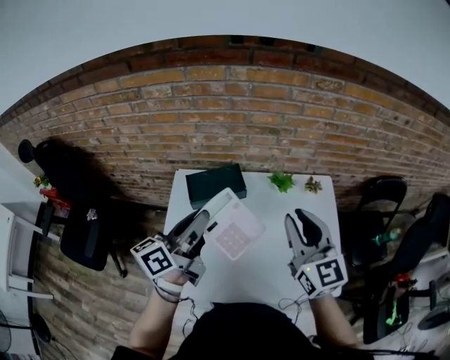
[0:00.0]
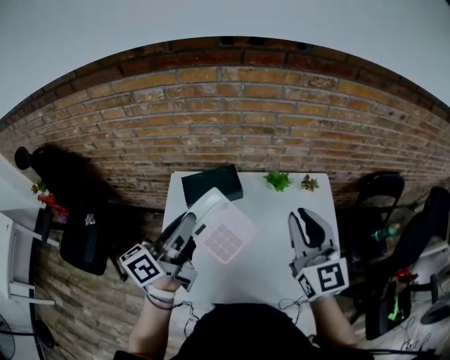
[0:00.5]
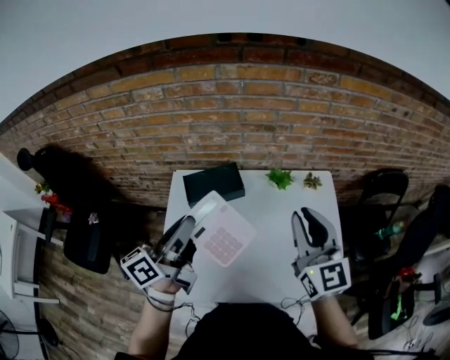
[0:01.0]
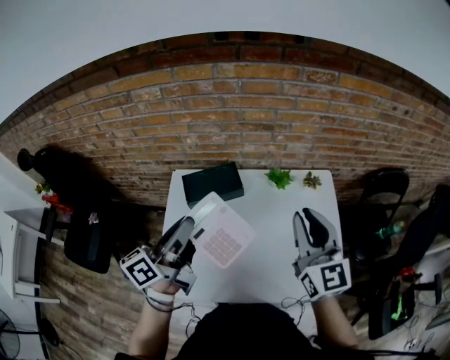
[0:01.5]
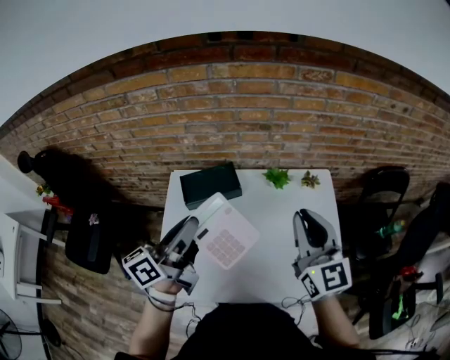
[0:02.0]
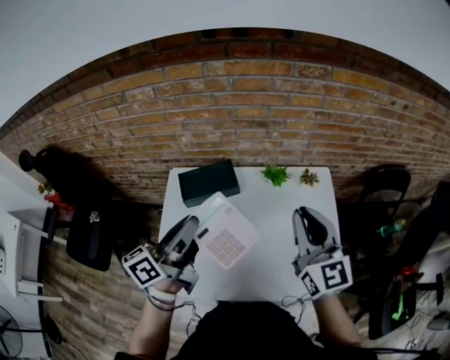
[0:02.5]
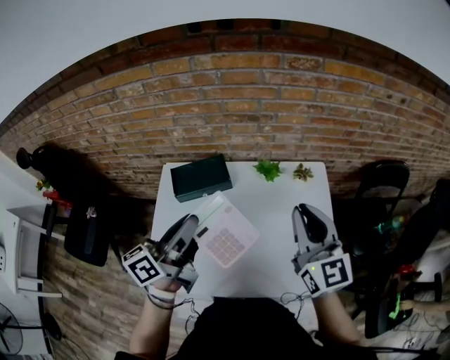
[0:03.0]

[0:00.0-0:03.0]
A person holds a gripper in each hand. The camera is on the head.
0:00.0 to 0:01.5: The grippers move only a little.
0:01.5 to 0:03.0: The grippers both shift to the right by some 5 cm.

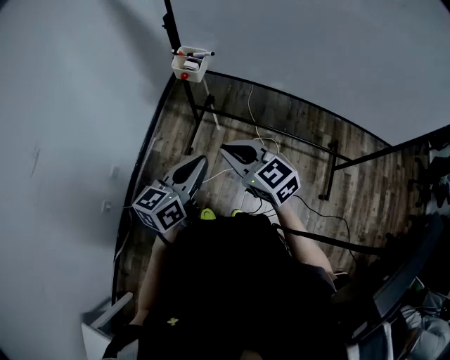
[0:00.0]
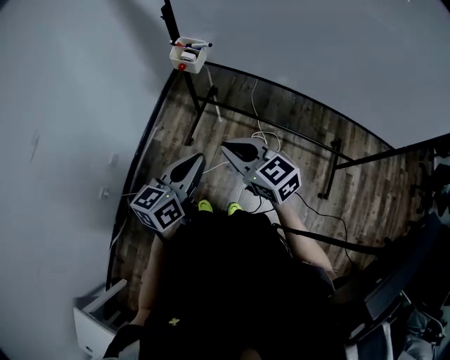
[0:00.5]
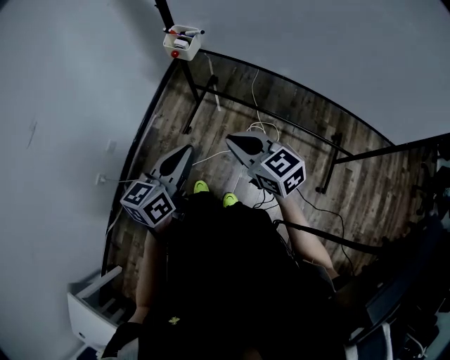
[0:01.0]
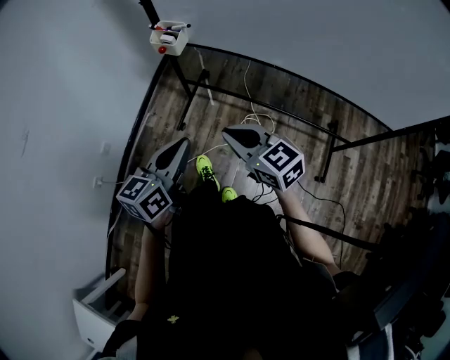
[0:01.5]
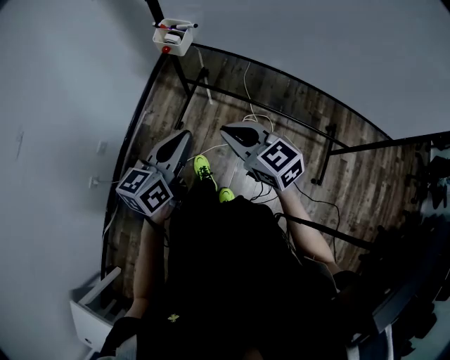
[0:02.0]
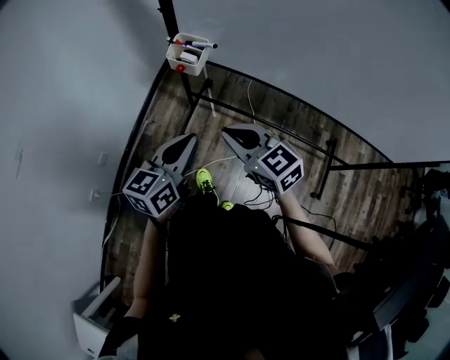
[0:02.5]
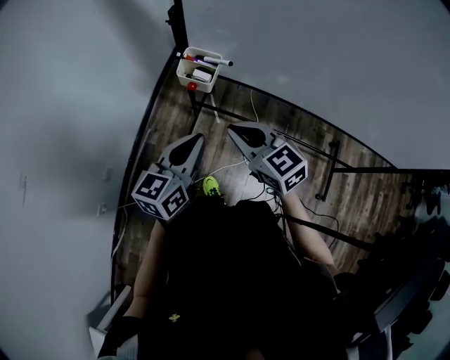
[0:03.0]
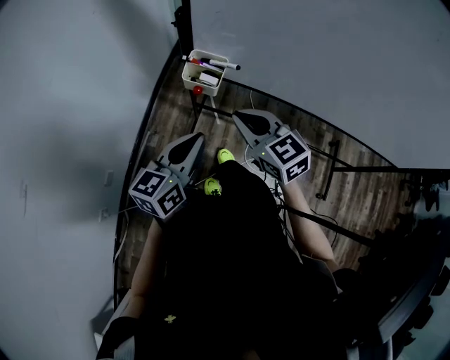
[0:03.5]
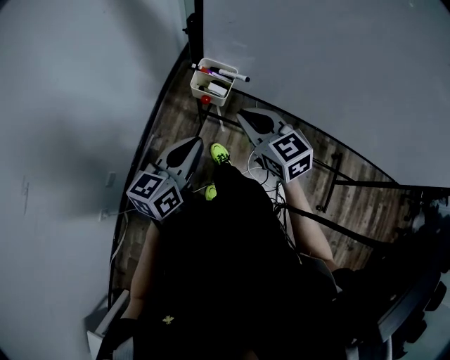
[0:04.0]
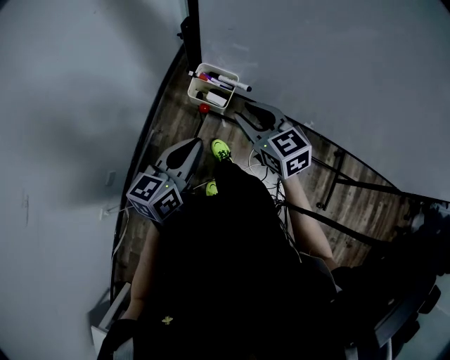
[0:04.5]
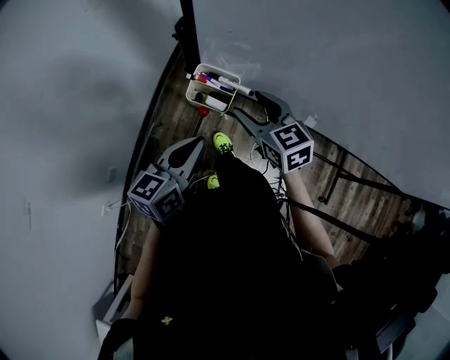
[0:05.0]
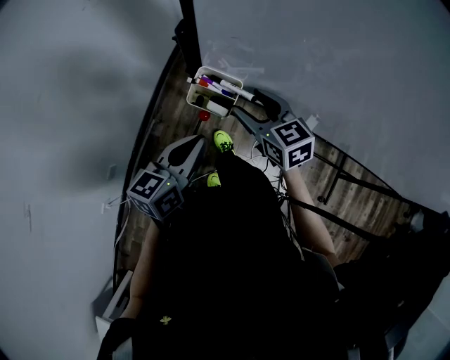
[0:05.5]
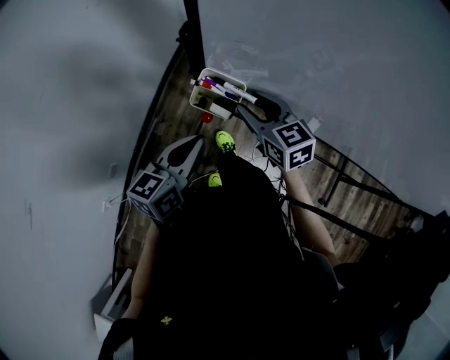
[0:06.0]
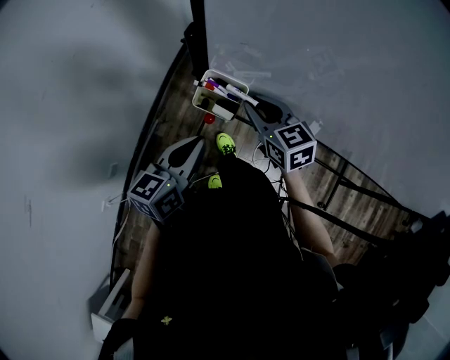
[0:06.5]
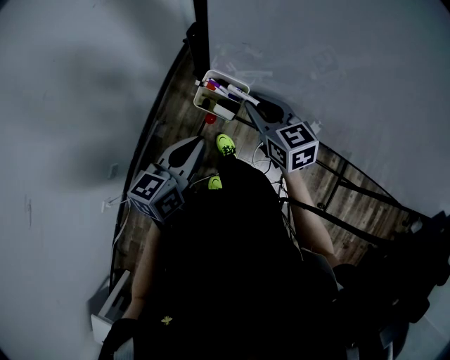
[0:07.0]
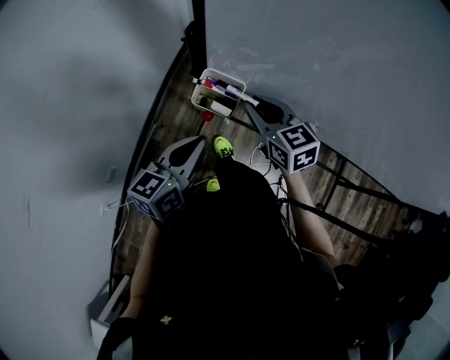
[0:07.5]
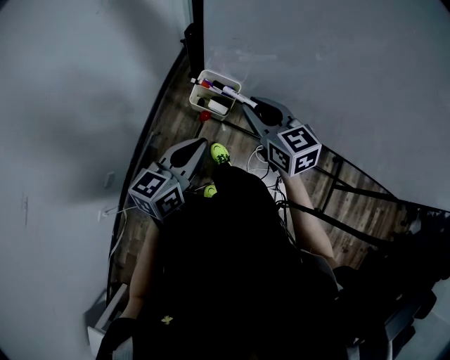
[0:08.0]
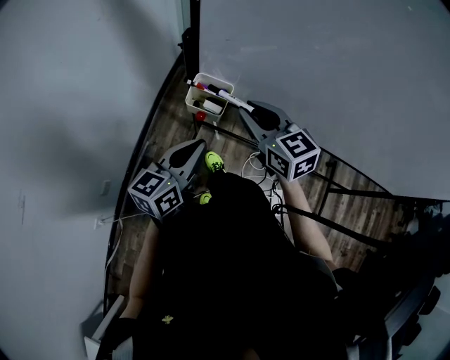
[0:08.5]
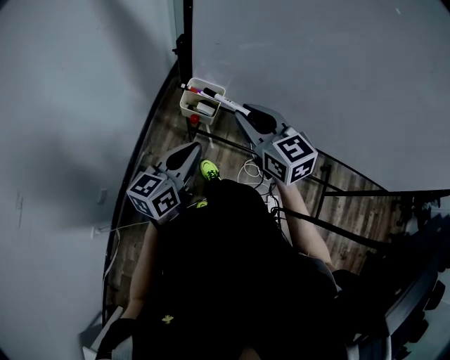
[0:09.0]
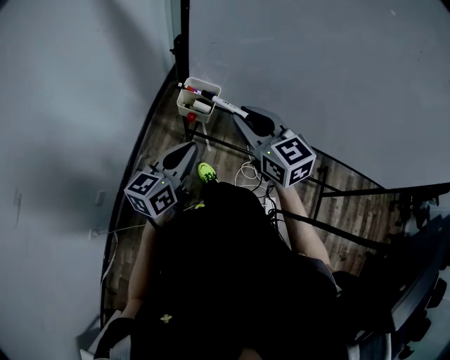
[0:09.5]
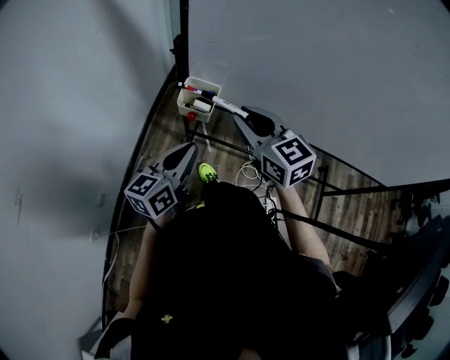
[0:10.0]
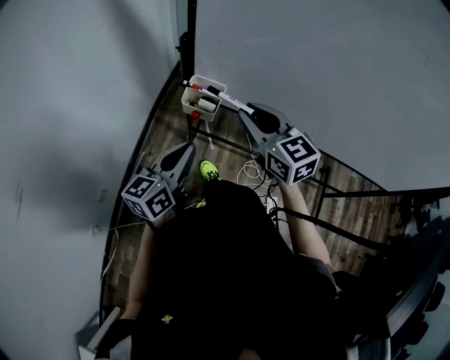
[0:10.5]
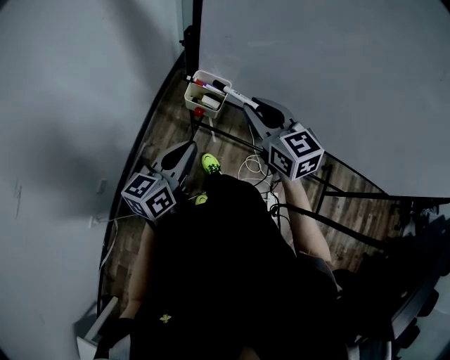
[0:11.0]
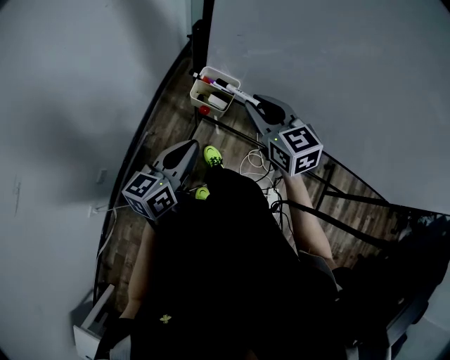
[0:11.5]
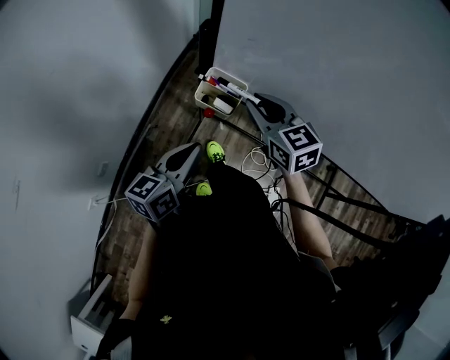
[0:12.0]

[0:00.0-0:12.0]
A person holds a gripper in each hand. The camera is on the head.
0:00.0 to 0:02.0: The right gripper is displaced to the right by roughly 5 cm.
0:02.0 to 0:04.0: The left gripper travels forward and to the left by approximately 25 cm; the right gripper moves forward, roughly 25 cm.
0:04.0 to 0:06.0: The right gripper shifts some 15 cm forward and downward, and opens its fingers, while the left gripper moves forward, roughly 10 cm.
0:06.0 to 0:08.0: The right gripper goes roughly 5 cm upward, and closes.
0:08.0 to 0:10.0: The right gripper shifts some 10 cm backward and upward.
0:10.0 to 0:12.0: The right gripper travels forward and downward by about 10 cm. Meanwhile the left gripper moves approximately 5 cm.

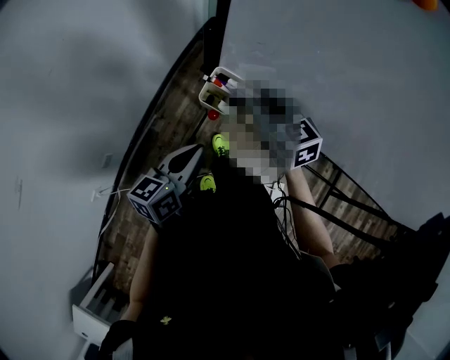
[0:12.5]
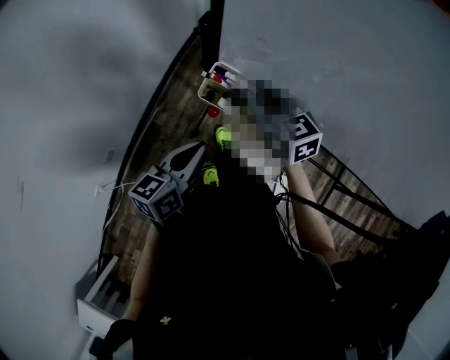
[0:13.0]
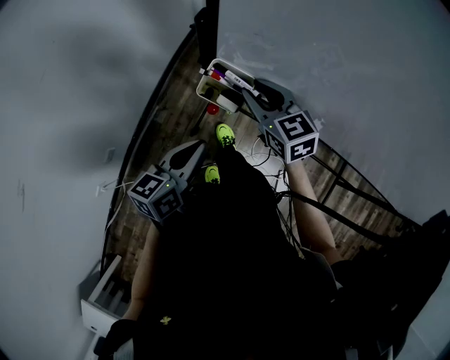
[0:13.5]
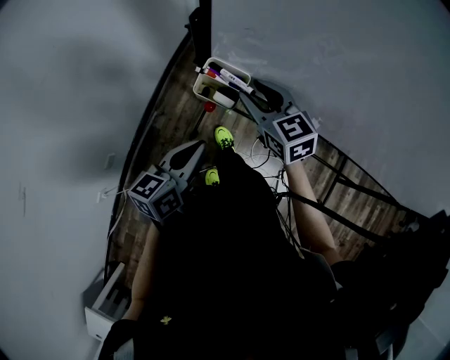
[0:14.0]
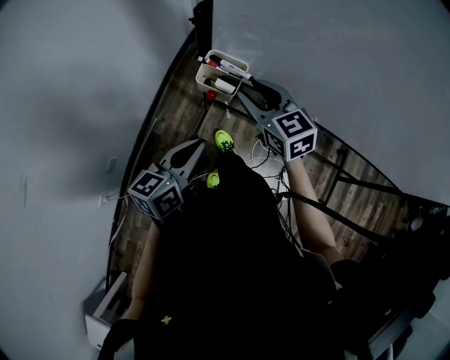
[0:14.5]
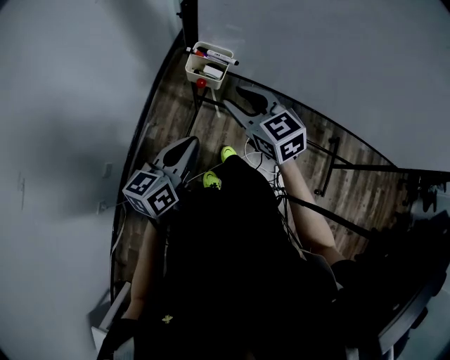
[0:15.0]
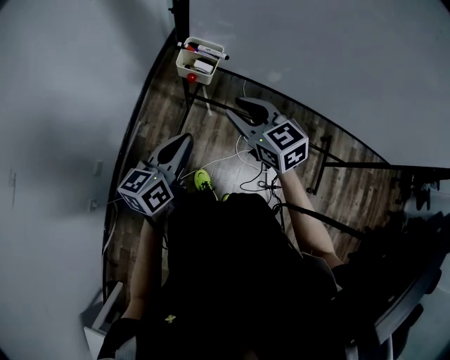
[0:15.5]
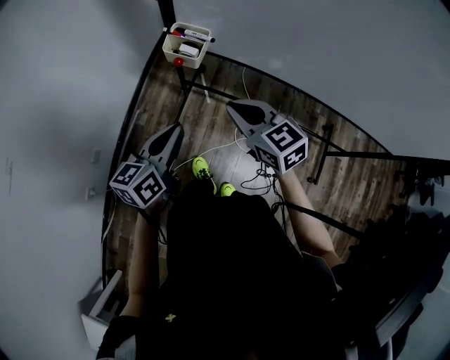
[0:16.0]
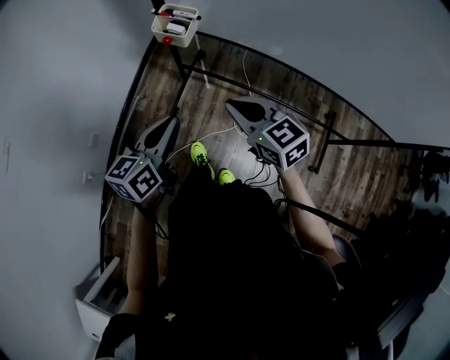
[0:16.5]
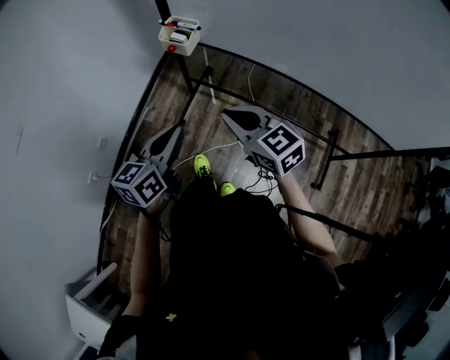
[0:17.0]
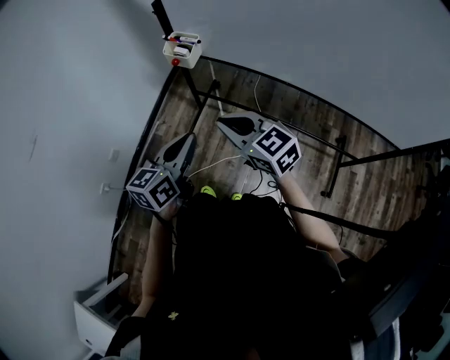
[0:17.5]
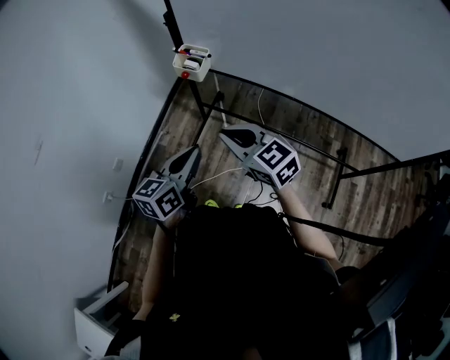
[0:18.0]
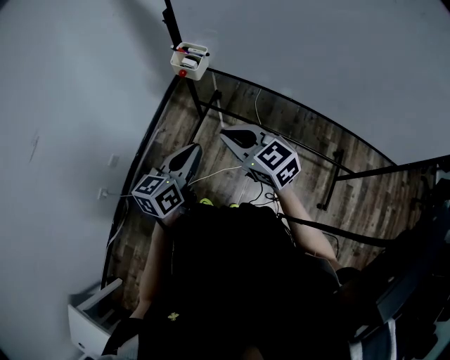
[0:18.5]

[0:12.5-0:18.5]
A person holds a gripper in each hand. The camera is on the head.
0:12.5 to 0:14.5: The right gripper moves backward, some 5 cm.
0:14.5 to 0:16.5: The left gripper heads backward, covering about 10 cm, while the right gripper shifts roughly 25 cm backward, and closes up.
0:16.5 to 0:18.5: The left gripper is displaced backward by roughly 5 cm. The right gripper ends up approximately 5 cm from where it was.

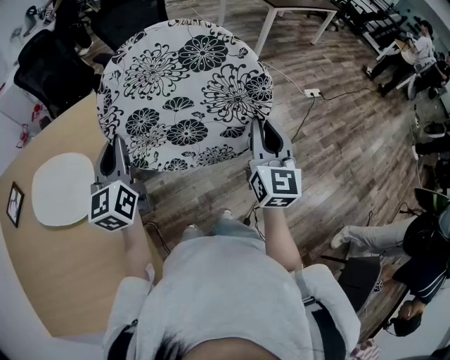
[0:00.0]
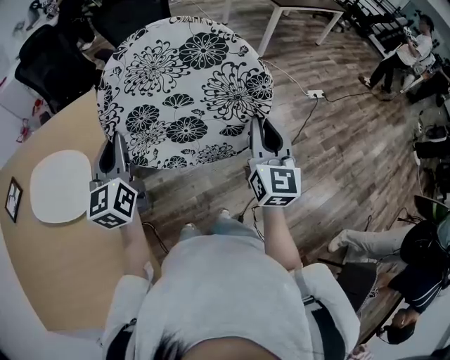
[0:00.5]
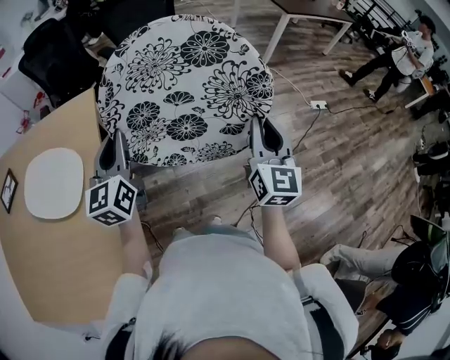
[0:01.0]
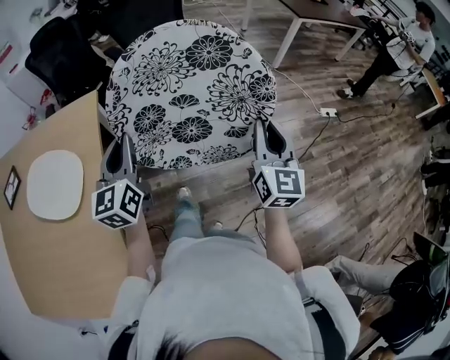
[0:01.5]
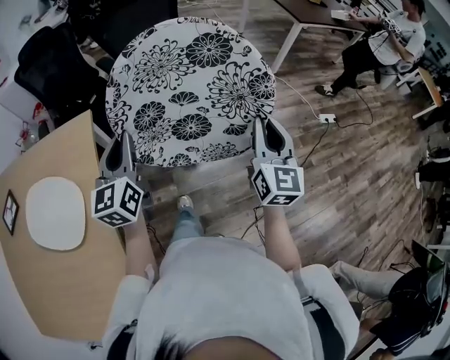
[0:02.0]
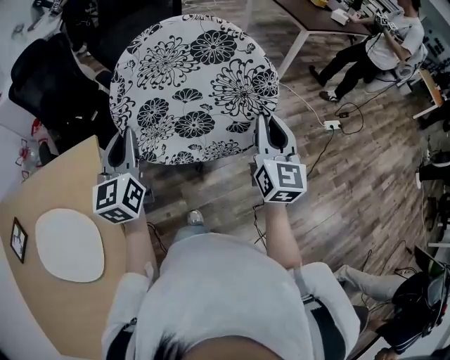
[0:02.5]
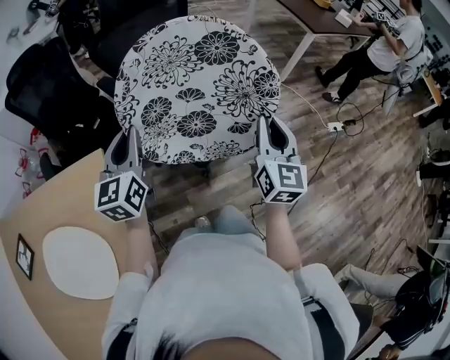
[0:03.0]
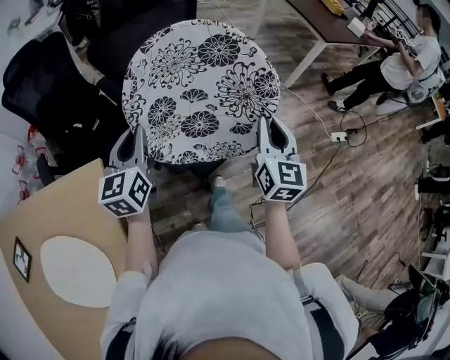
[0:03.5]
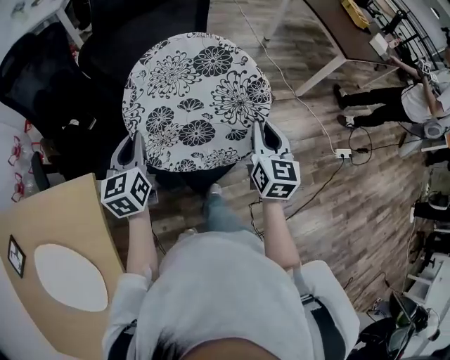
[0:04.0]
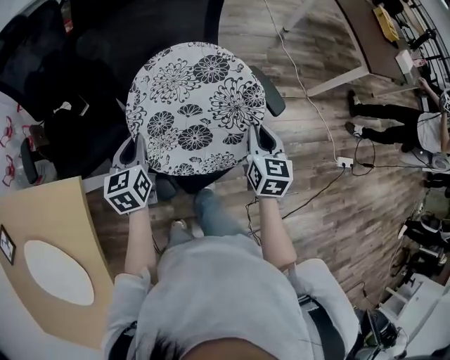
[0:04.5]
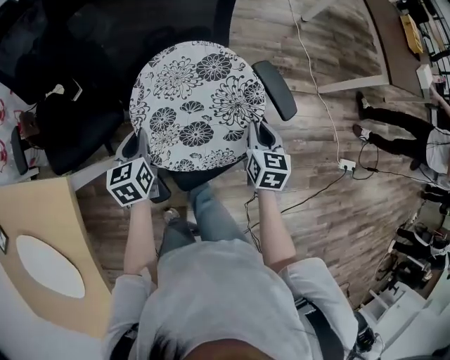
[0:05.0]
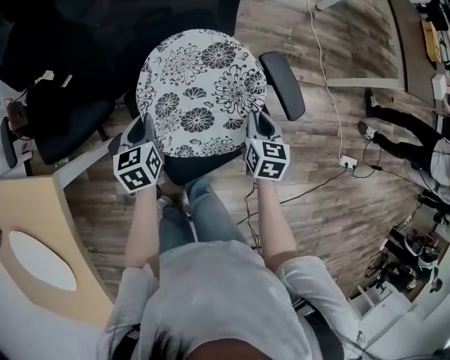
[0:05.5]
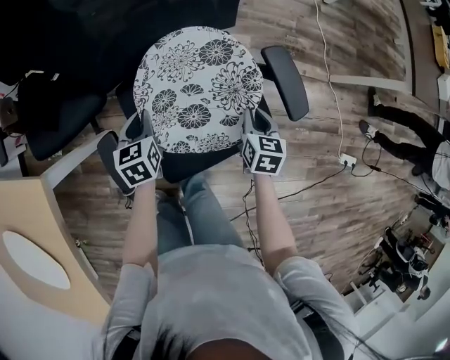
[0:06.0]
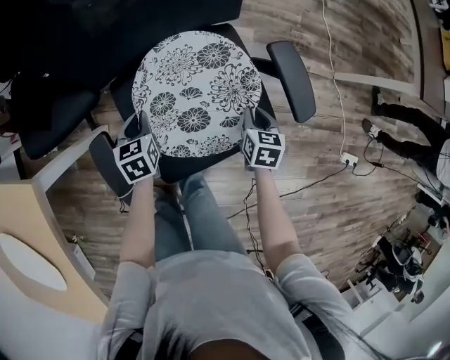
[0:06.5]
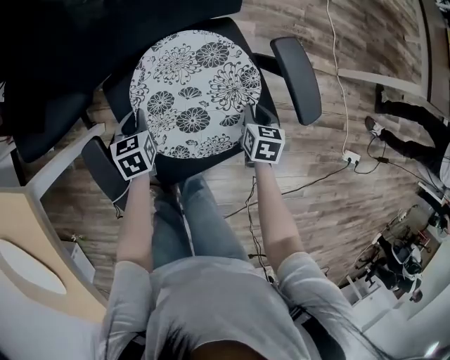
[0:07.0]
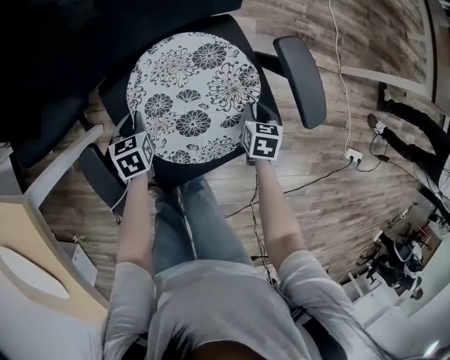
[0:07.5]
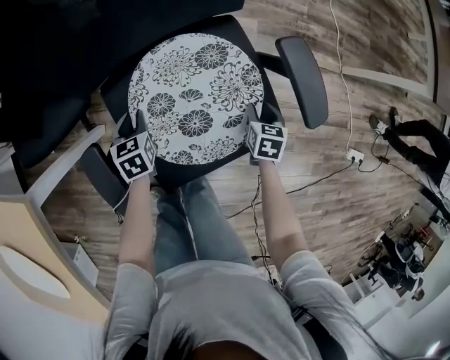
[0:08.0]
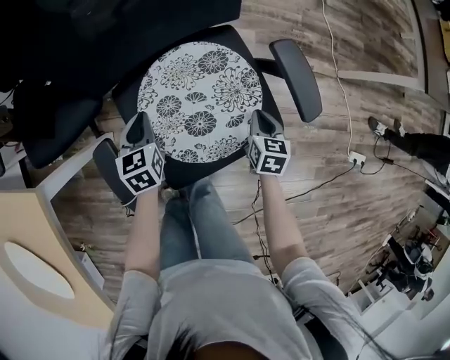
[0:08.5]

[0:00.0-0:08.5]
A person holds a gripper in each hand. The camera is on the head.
0:00.0 to 0:02.0: The grippers move only a little.
0:02.0 to 0:04.0: The grippers move only a little.
0:06.5 to 0:08.5: The left gripper travels downward and back again, approximately 5 cm each way. The right gripper opens, then closes again.
